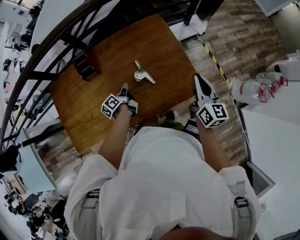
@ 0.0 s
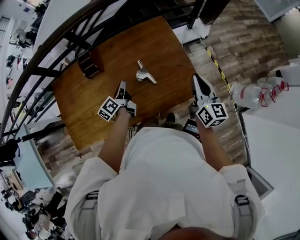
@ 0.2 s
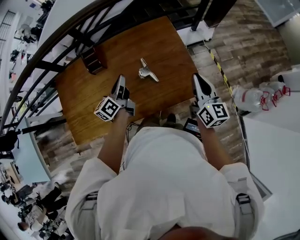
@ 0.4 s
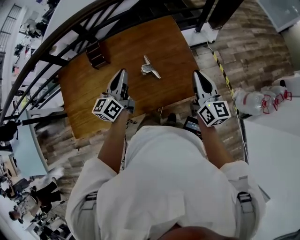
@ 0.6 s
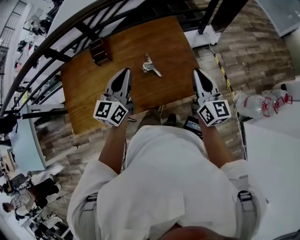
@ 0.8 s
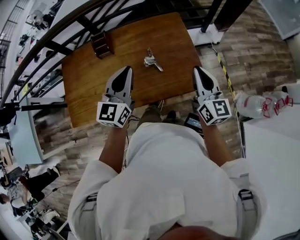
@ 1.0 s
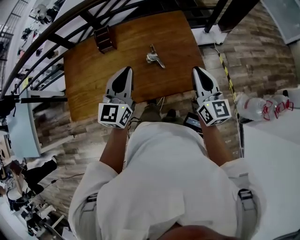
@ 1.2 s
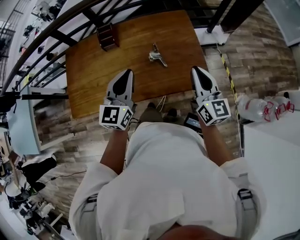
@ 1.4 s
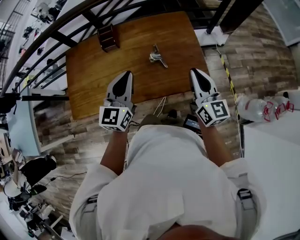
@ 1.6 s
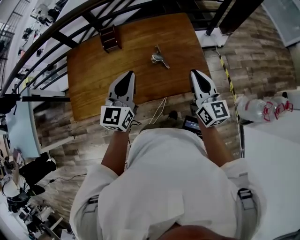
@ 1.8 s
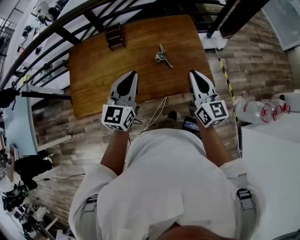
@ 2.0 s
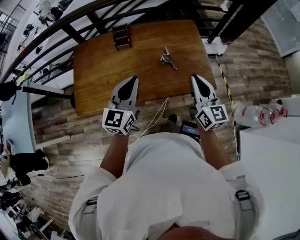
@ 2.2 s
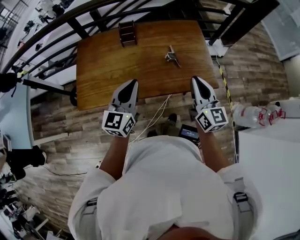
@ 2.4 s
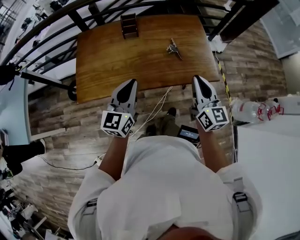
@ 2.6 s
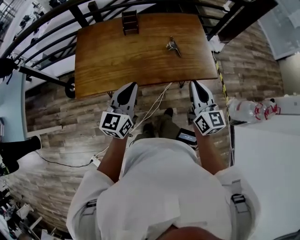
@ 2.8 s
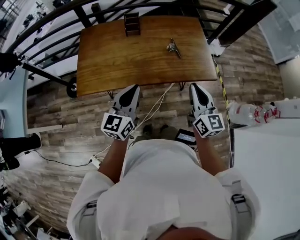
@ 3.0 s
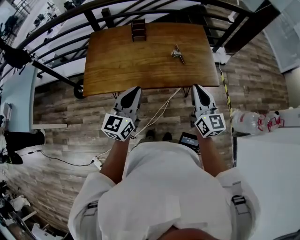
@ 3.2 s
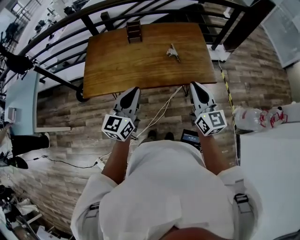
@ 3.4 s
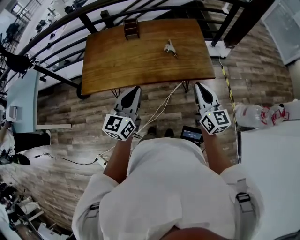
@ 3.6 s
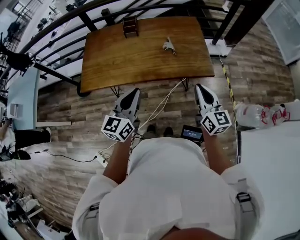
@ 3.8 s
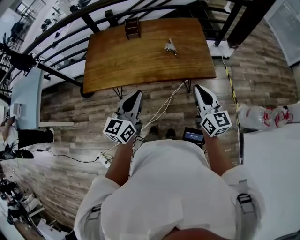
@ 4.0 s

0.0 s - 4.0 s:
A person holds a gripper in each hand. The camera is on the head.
0.0 s - 1.4 s: The right gripper shifts some 10 cm backward, to the left and upward, and rotates roughly 20 degrees; the left gripper is displaced upward and backward by roughly 30 cm, and rolls clockwise, seen from behind, by about 70 degrees.
1.4 s - 2.6 s: The right gripper is displaced to the left and backward by some 20 cm. Meanwhile the left gripper heads backward and to the left, covering about 20 cm.
2.6 s - 4.0 s: The grippers both shift backward and to the right by some 15 cm.

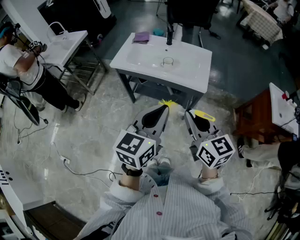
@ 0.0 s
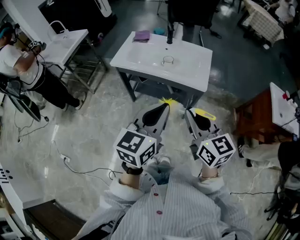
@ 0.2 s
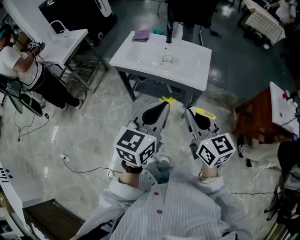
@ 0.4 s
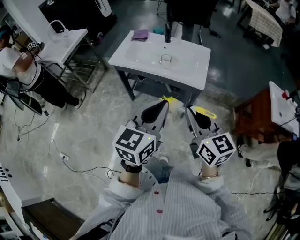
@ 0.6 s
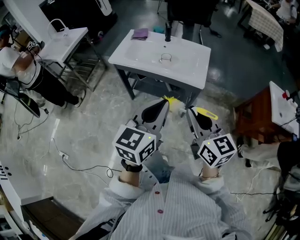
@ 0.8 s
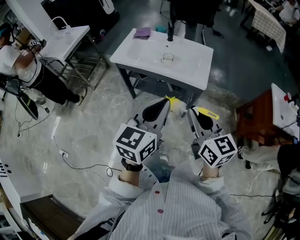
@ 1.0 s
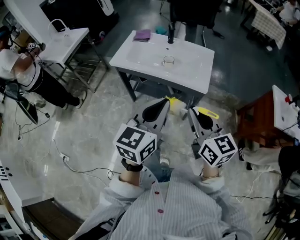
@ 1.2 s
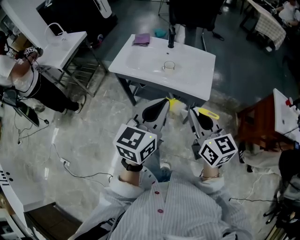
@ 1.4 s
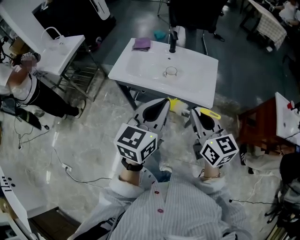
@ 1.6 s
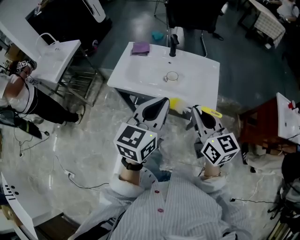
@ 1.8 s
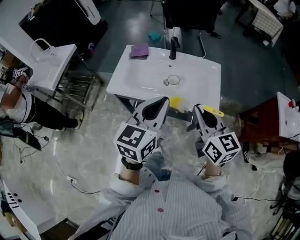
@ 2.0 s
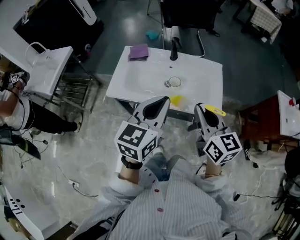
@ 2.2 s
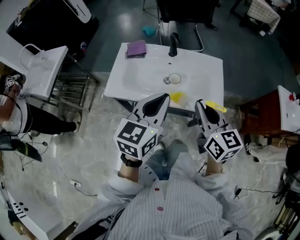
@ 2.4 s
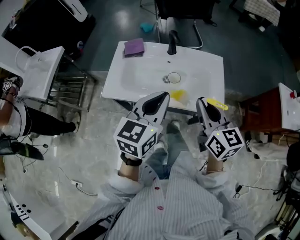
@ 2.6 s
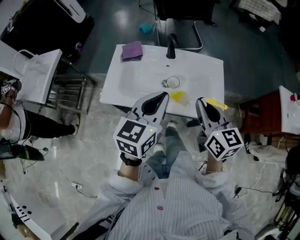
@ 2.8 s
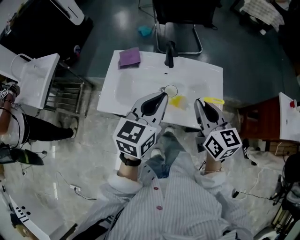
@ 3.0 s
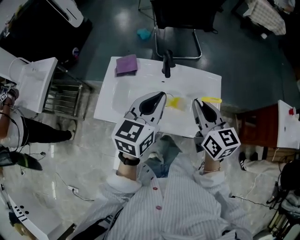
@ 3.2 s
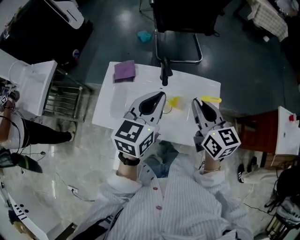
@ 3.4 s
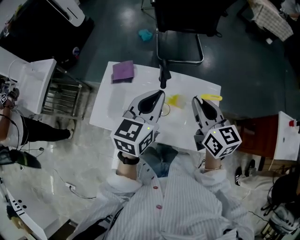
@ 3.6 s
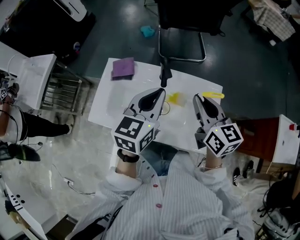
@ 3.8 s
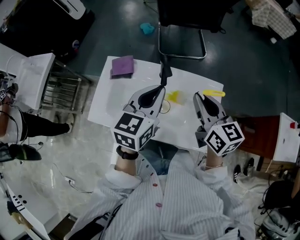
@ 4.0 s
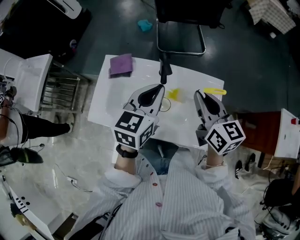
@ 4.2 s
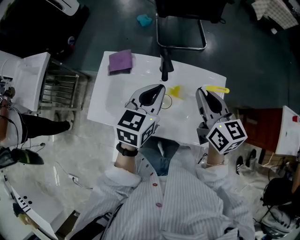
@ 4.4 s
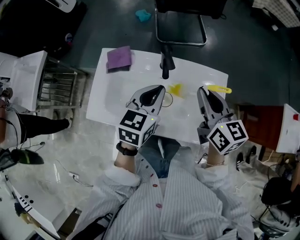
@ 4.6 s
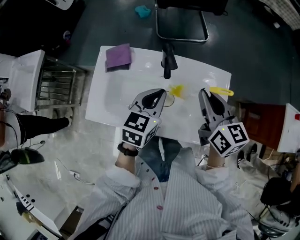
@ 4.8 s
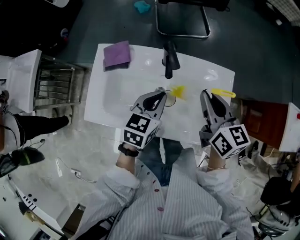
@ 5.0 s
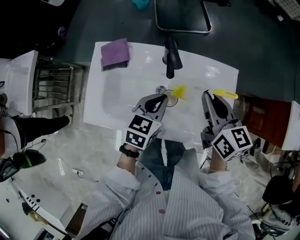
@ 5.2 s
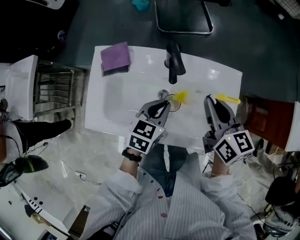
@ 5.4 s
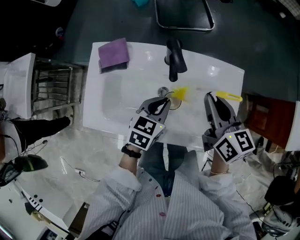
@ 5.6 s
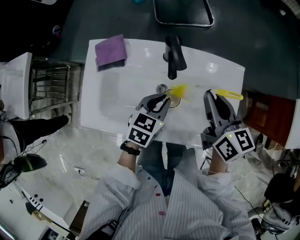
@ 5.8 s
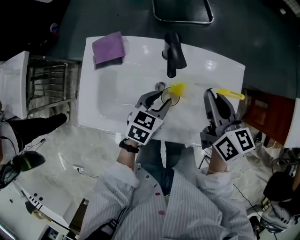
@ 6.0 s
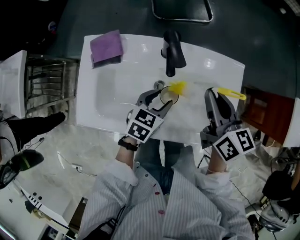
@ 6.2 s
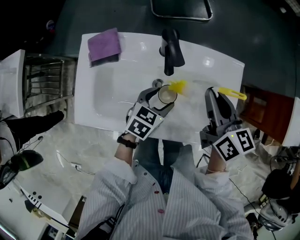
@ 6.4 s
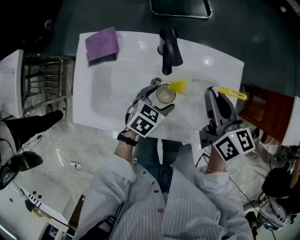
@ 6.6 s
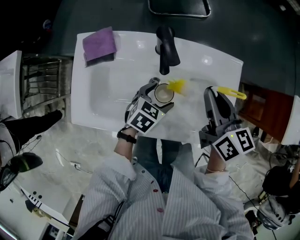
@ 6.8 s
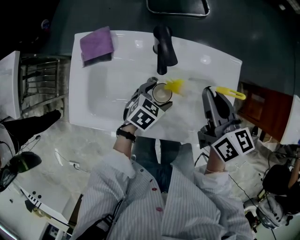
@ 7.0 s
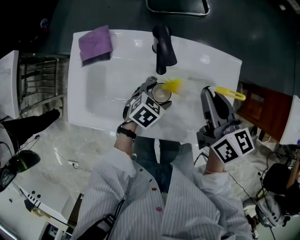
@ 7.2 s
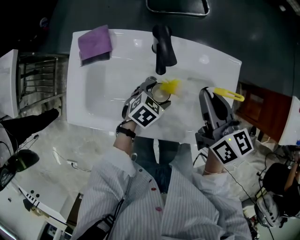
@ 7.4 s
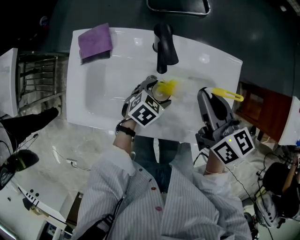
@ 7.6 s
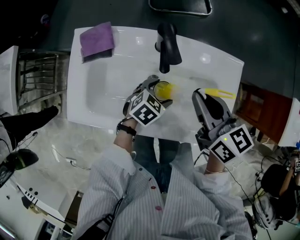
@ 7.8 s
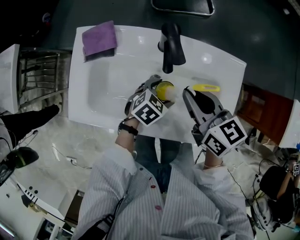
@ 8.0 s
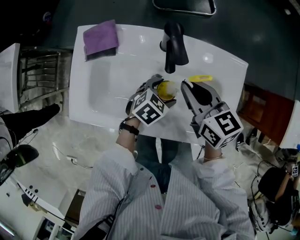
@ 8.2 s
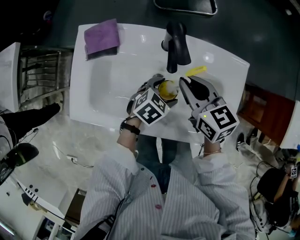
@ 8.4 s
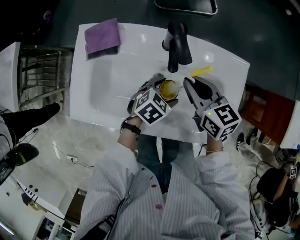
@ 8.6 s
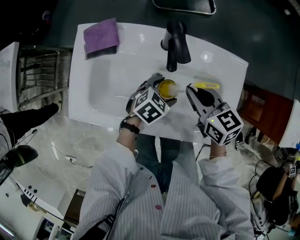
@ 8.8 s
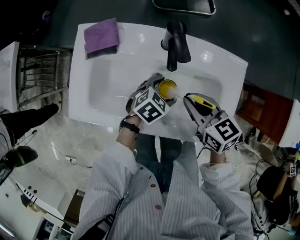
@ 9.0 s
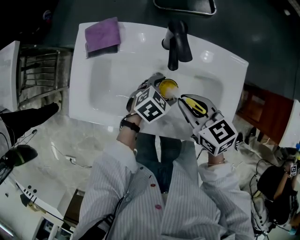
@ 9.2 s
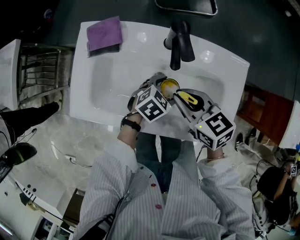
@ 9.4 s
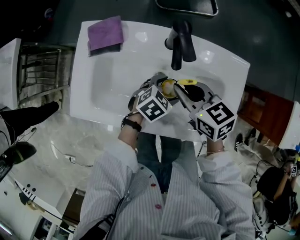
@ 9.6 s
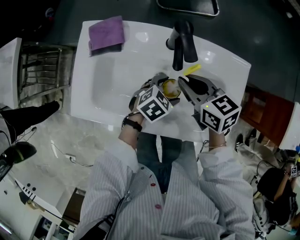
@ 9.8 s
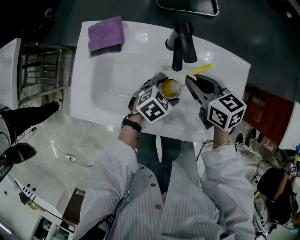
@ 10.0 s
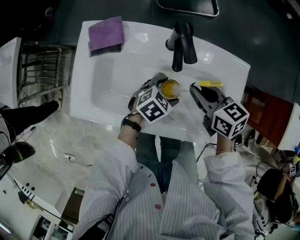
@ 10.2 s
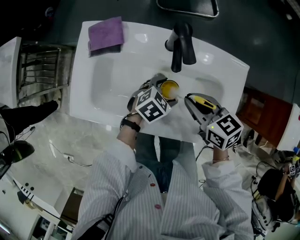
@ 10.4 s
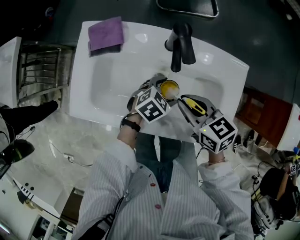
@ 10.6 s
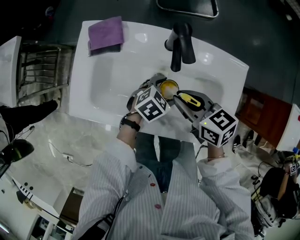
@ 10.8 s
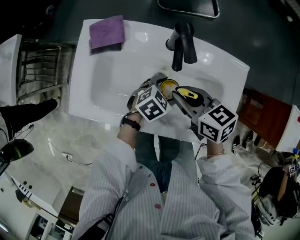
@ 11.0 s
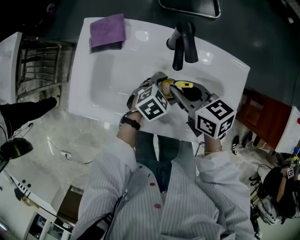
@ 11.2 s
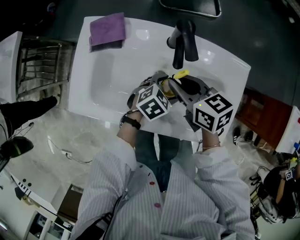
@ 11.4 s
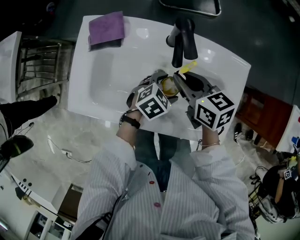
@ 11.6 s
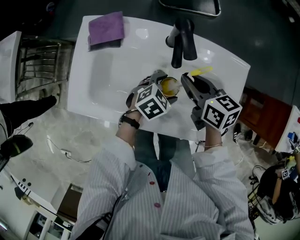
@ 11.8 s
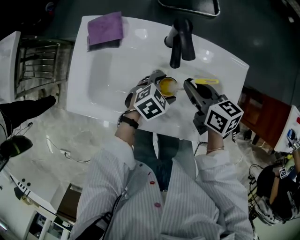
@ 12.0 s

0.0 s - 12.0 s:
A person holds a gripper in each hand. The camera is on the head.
0.0 s - 1.6 s: The two grippers go roughly 15 cm forward.
1.6 s - 3.0 s: The grippers both shift forward by roughly 25 cm.
3.0 s - 4.4 s: Both grippers travel together forward, about 15 cm.
4.4 s - 6.0 s: The left gripper moves downward, some 25 cm, and rotates some 20 degrees. Meanwhile the right gripper heads downward, covering about 10 cm.
6.0 s - 7.6 s: The left gripper goes roughly 10 cm downward, swivels about 20 degrees, and opens up.
7.6 s - 9.0 s: The right gripper heads downward and backward, covering approximately 10 cm, and rotates roughly 30 degrees.

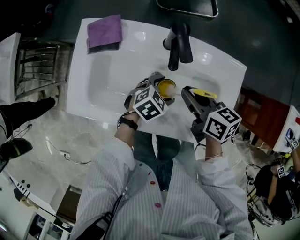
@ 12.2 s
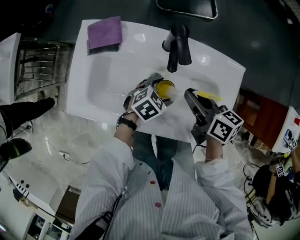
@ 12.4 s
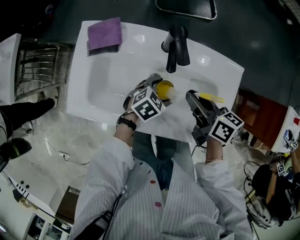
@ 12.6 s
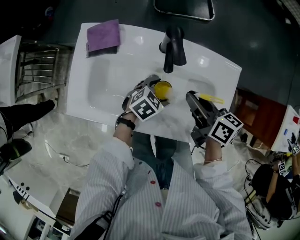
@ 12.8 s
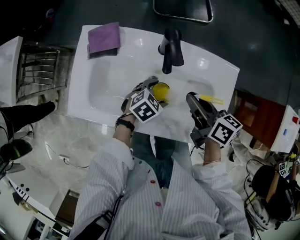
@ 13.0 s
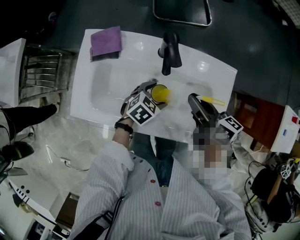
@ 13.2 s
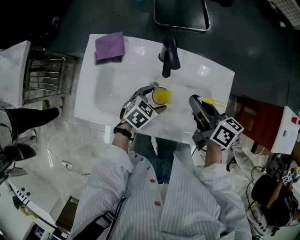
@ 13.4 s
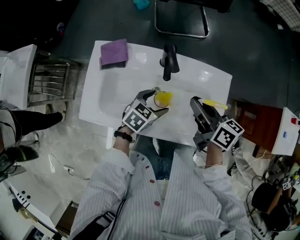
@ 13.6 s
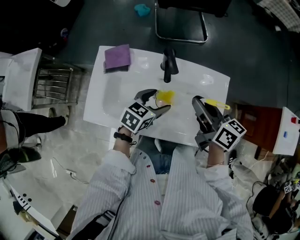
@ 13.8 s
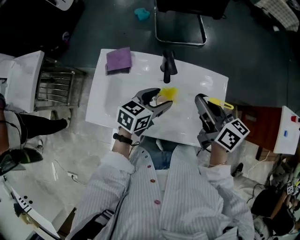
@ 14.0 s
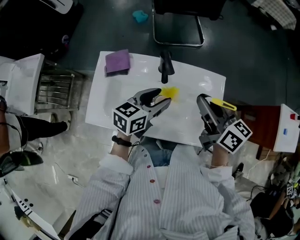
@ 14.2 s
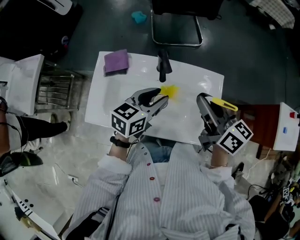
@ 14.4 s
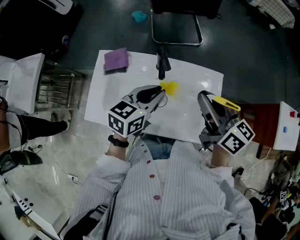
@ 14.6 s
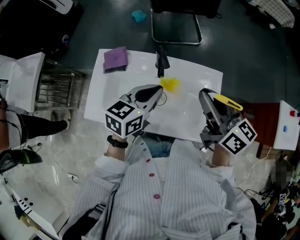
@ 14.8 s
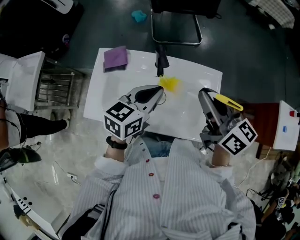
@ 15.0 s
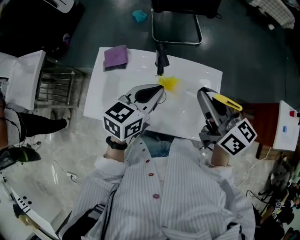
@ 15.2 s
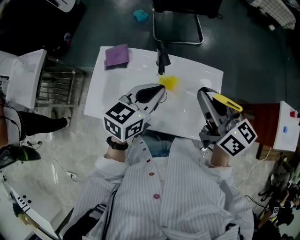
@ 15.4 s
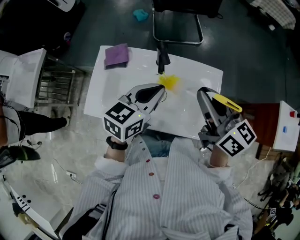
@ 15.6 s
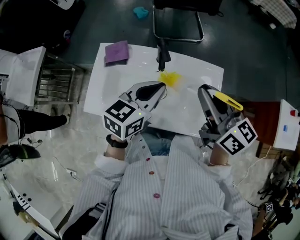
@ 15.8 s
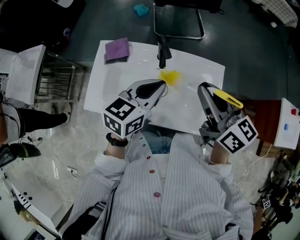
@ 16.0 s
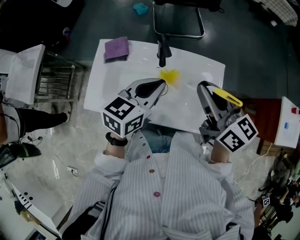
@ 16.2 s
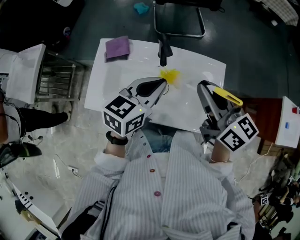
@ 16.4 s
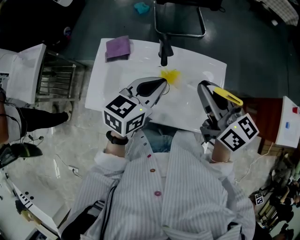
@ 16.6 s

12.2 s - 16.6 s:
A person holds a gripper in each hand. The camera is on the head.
12.2 s - 13.6 s: Both grippers travel together upward, about 10 cm.
13.6 s - 15.2 s: The two grippers go roughly 20 cm upward. The right gripper rotates about 20 degrees, while the left gripper turns by some 30 degrees, and closes.
15.2 s - 16.6 s: The grippers move only a little.

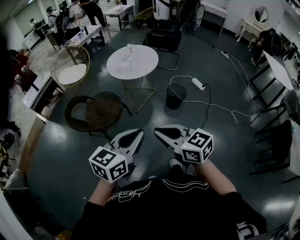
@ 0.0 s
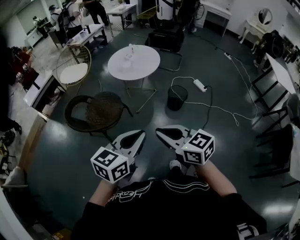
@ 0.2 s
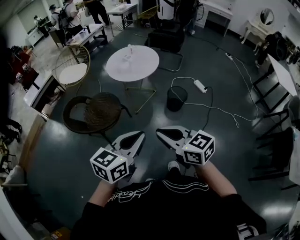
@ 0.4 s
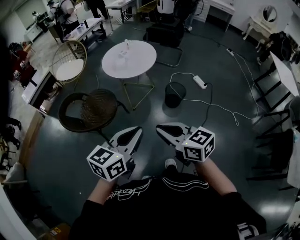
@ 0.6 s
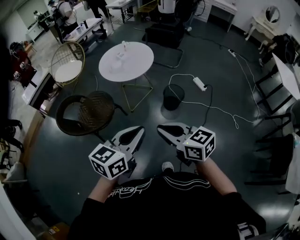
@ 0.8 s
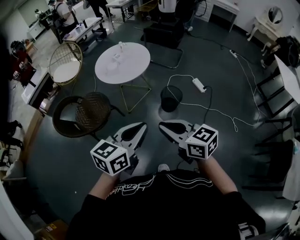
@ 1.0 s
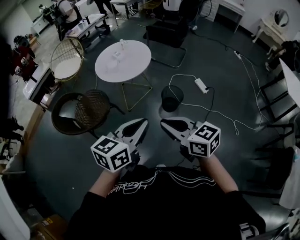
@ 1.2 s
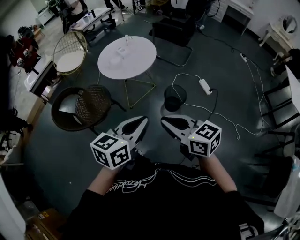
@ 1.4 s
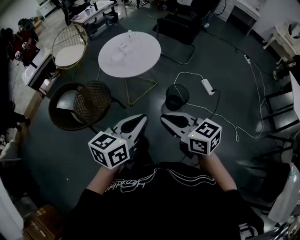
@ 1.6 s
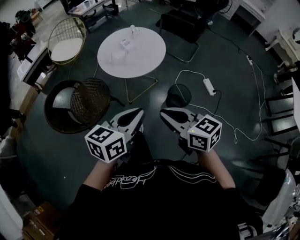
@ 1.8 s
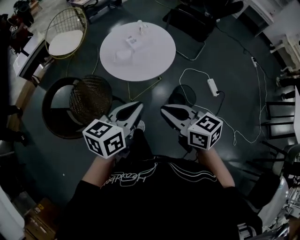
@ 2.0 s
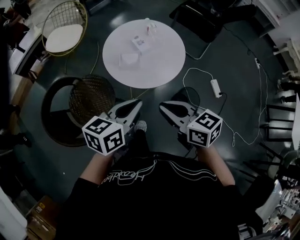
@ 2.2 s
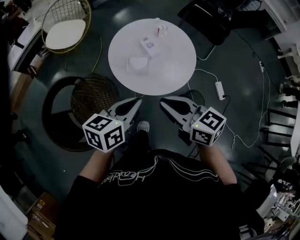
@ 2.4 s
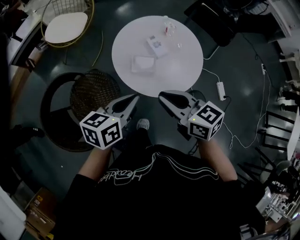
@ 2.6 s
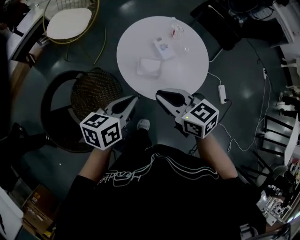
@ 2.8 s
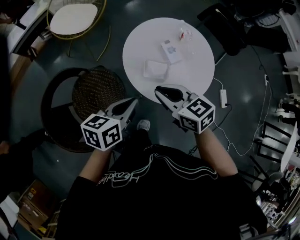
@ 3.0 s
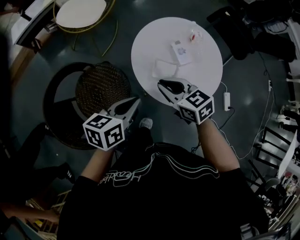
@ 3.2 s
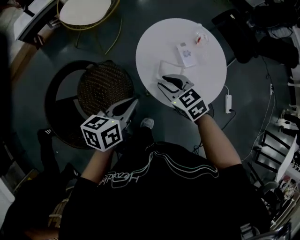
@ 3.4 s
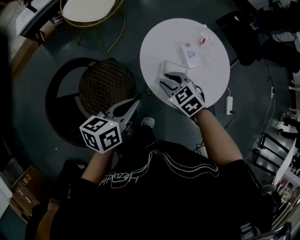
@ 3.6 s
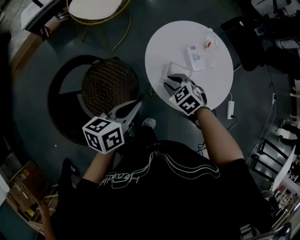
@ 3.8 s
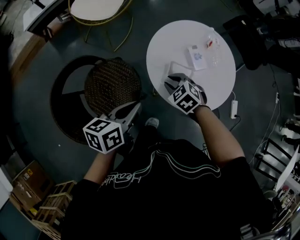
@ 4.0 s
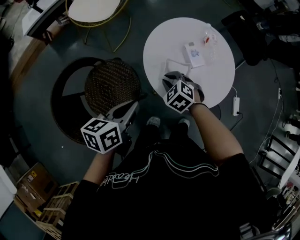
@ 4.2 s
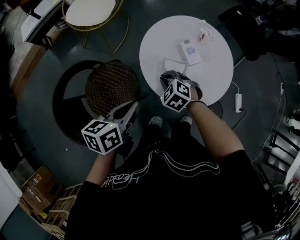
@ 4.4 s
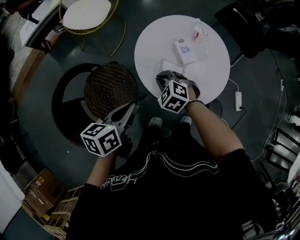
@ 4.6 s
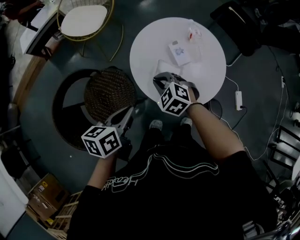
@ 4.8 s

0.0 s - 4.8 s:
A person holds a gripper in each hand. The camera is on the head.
0.0 s - 1.6 s: The grippers both shift forward and to the right by some 30 cm.
1.6 s - 3.2 s: The pair of grippers is taken forward and to the left, approximately 50 cm. The left gripper heads downward, covering roughly 15 cm, and swivels some 30 degrees. The right gripper turns by approximately 30 degrees.
3.2 s - 4.8 s: The right gripper is displaced downward by roughly 10 cm, and swivels about 40 degrees.
